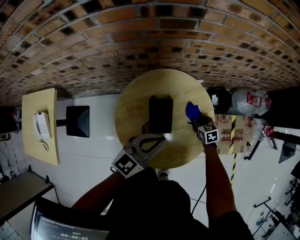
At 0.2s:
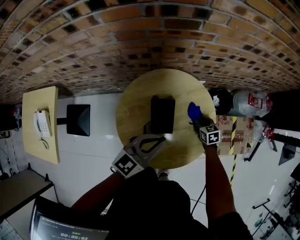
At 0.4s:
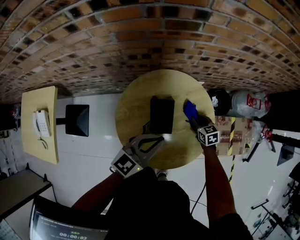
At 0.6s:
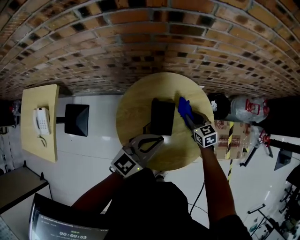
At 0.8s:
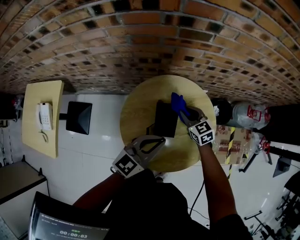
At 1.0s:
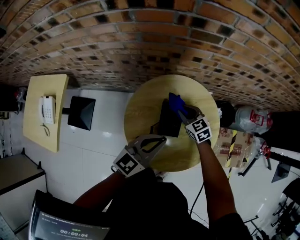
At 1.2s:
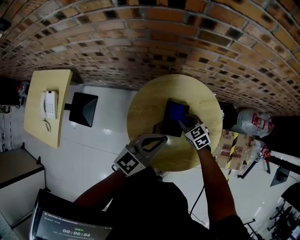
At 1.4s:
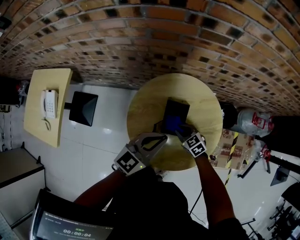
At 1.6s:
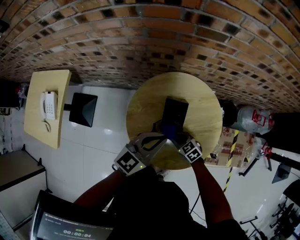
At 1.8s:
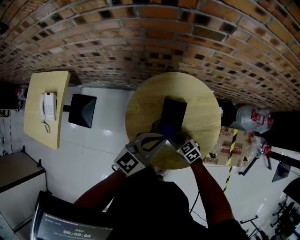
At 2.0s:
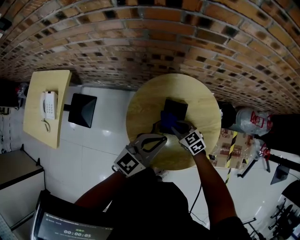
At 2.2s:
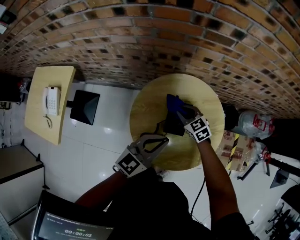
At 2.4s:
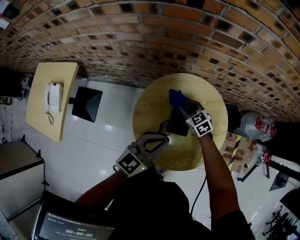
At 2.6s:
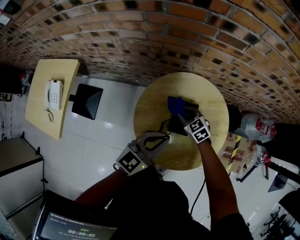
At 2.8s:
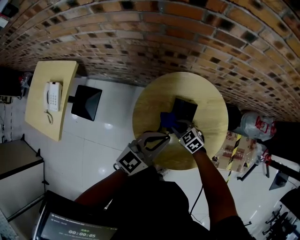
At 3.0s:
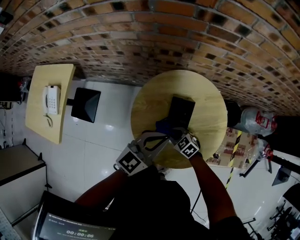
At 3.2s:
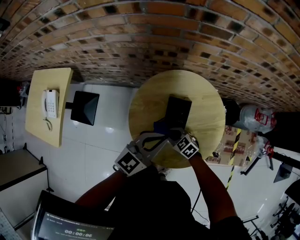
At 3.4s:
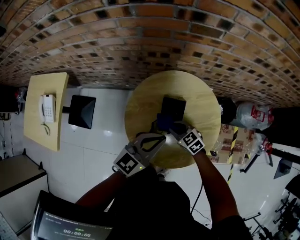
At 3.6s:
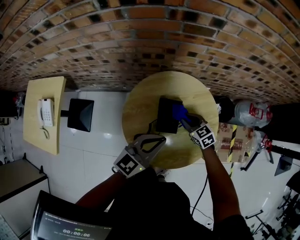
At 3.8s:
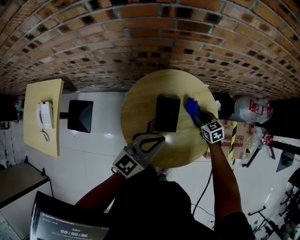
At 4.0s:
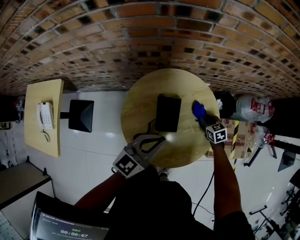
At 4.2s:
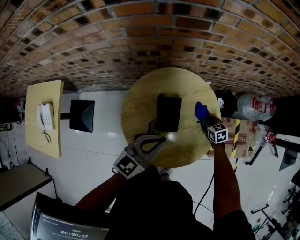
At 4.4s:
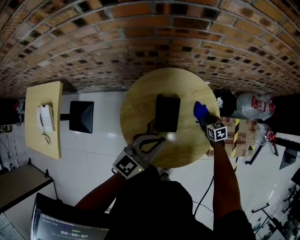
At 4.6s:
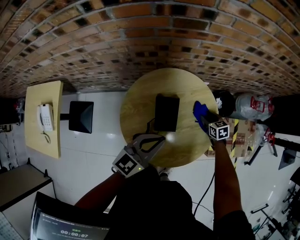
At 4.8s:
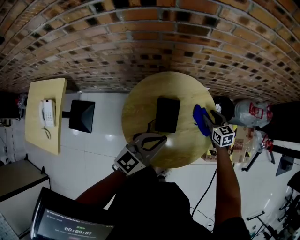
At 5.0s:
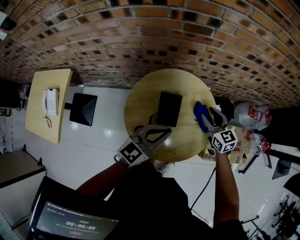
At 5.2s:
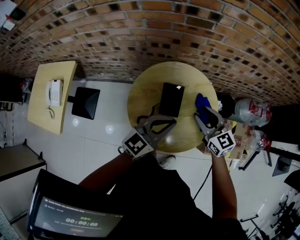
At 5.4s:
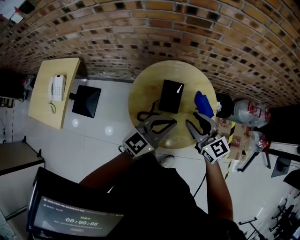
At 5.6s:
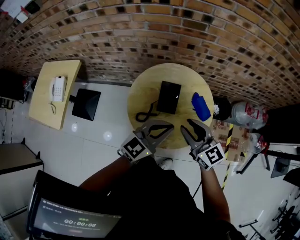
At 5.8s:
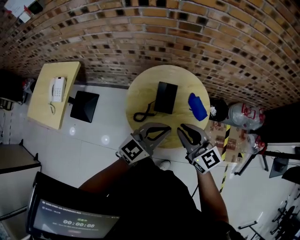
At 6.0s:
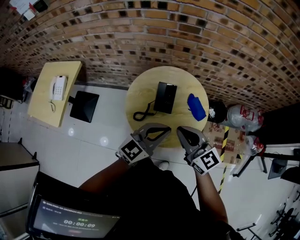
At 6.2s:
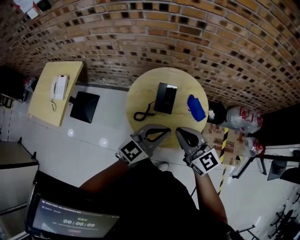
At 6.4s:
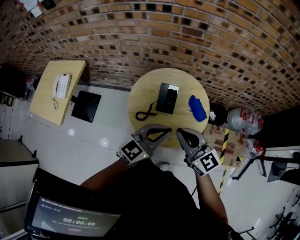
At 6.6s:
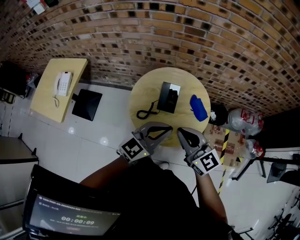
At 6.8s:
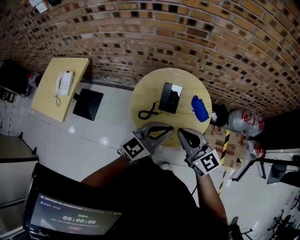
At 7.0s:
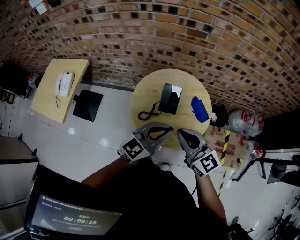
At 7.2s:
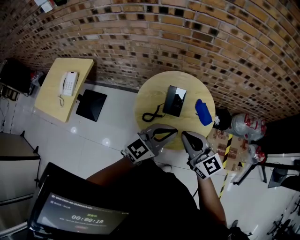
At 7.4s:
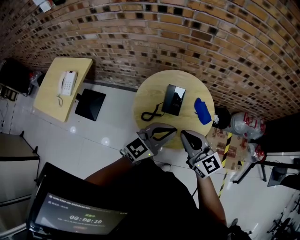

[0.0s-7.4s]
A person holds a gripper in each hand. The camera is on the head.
0.0s to 1.4s: The right gripper goes some 20 cm to the left, and turns by some 30 degrees, while the left gripper heads to the left, covering roughly 5 cm.
1.4s to 3.0s: The right gripper goes forward and backward, approximately 15 cm each way, reversing 2 times.
3.0s to 4.4s: The right gripper is displaced to the right by some 25 cm, and swivels some 40 degrees.
4.4s to 6.0s: The right gripper heads upward and backward, covering roughly 40 cm, tips its fingers upward by roughly 50 degrees, and closes up; the left gripper goes roughly 20 cm backward, upward and to the right.
6.0s to 7.4s: The grippers stay close to where they were, moving slightly.

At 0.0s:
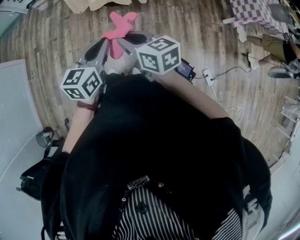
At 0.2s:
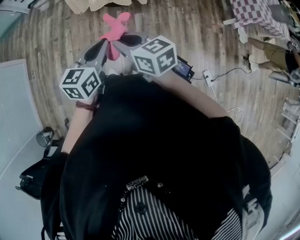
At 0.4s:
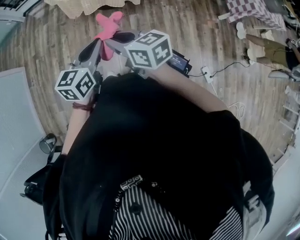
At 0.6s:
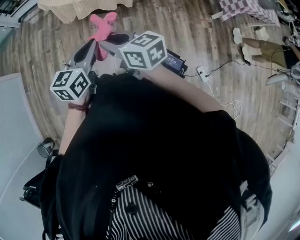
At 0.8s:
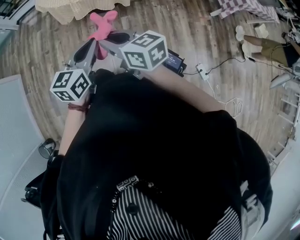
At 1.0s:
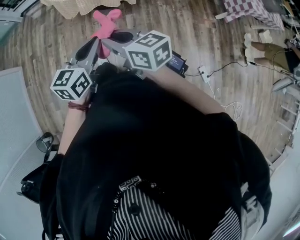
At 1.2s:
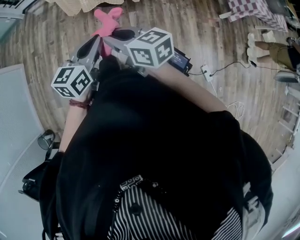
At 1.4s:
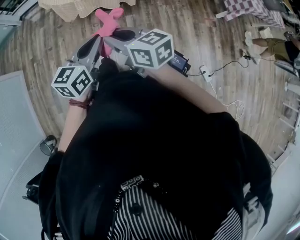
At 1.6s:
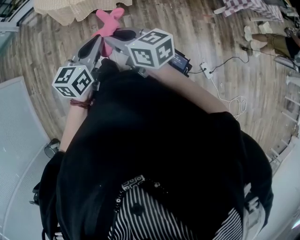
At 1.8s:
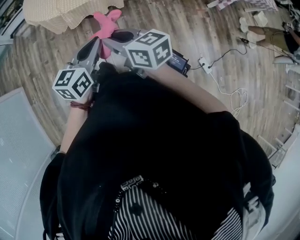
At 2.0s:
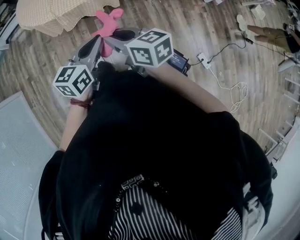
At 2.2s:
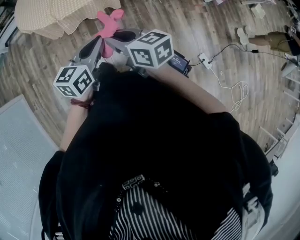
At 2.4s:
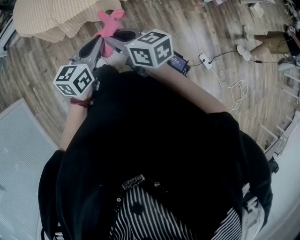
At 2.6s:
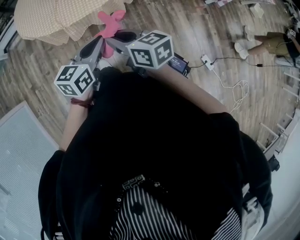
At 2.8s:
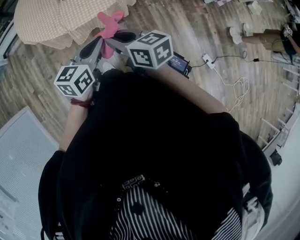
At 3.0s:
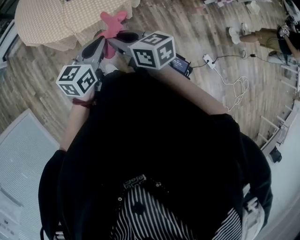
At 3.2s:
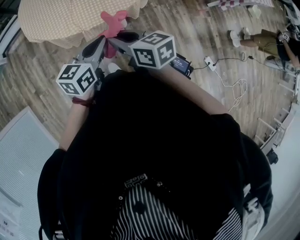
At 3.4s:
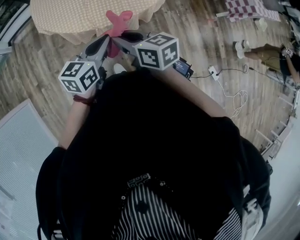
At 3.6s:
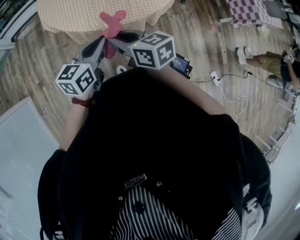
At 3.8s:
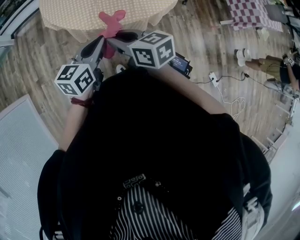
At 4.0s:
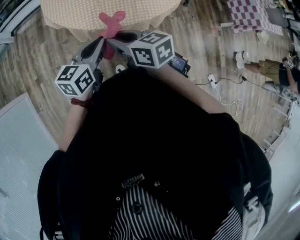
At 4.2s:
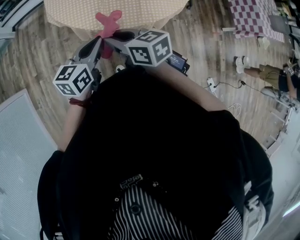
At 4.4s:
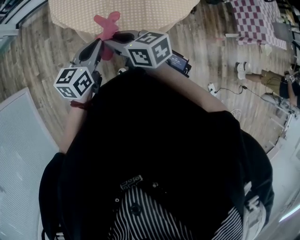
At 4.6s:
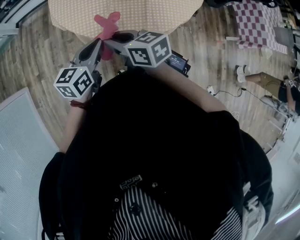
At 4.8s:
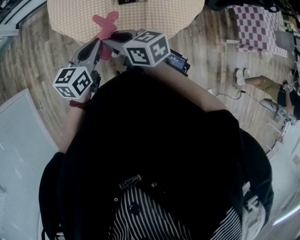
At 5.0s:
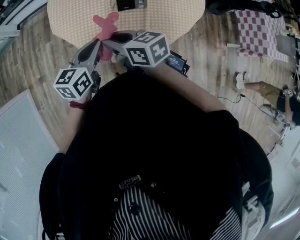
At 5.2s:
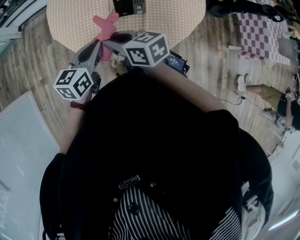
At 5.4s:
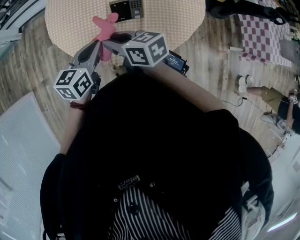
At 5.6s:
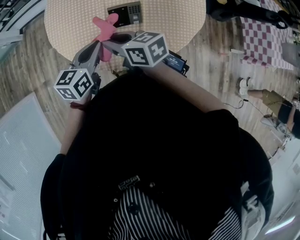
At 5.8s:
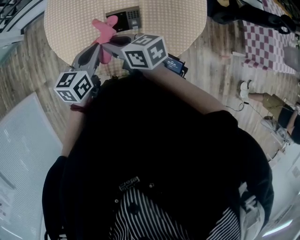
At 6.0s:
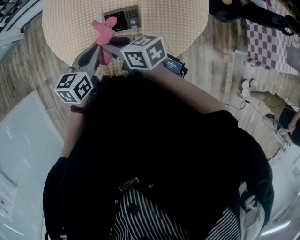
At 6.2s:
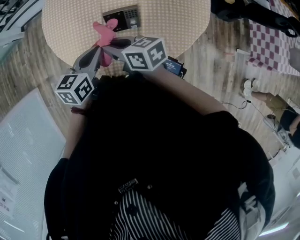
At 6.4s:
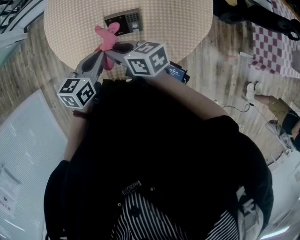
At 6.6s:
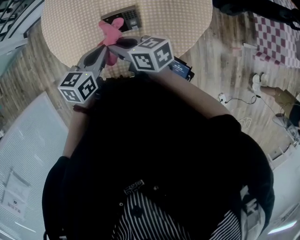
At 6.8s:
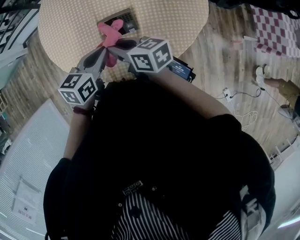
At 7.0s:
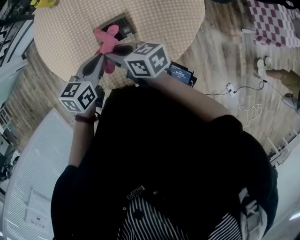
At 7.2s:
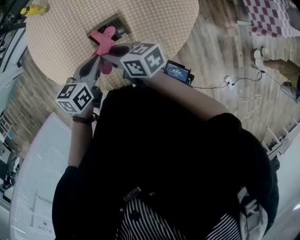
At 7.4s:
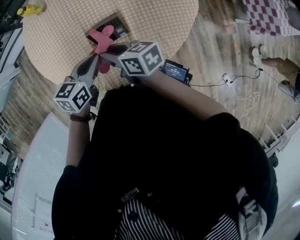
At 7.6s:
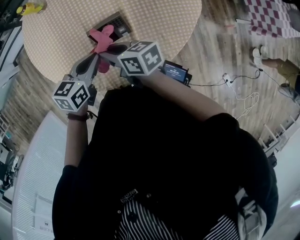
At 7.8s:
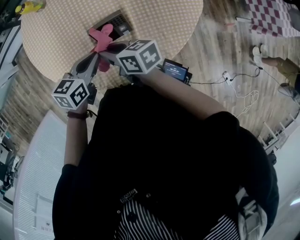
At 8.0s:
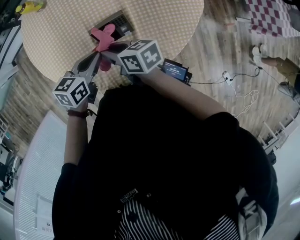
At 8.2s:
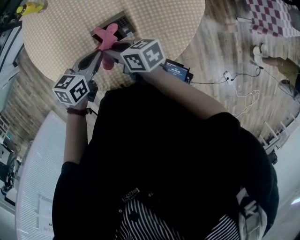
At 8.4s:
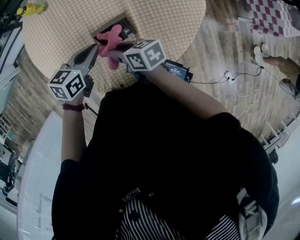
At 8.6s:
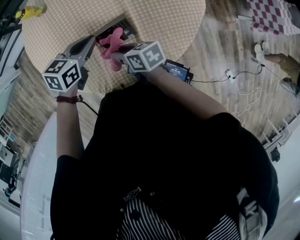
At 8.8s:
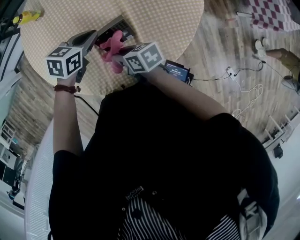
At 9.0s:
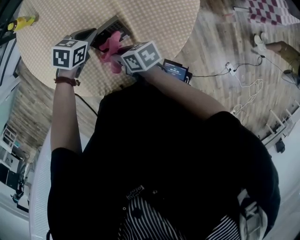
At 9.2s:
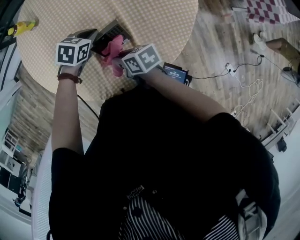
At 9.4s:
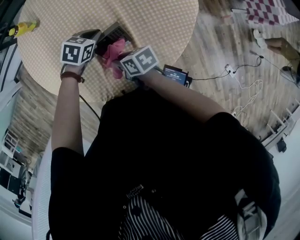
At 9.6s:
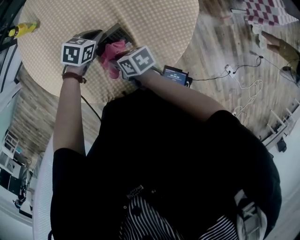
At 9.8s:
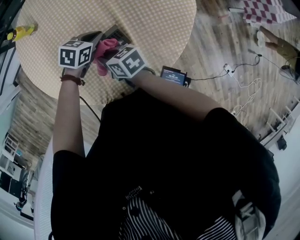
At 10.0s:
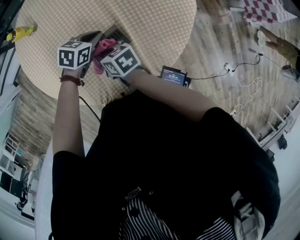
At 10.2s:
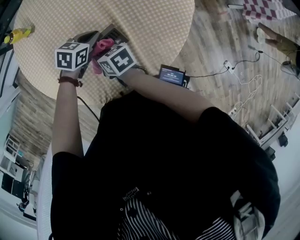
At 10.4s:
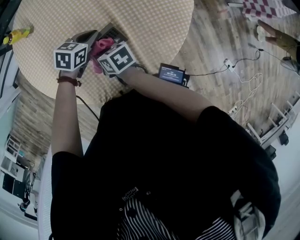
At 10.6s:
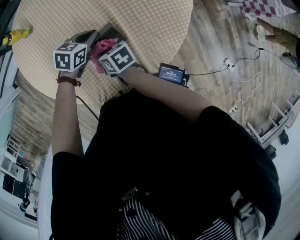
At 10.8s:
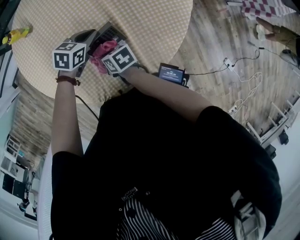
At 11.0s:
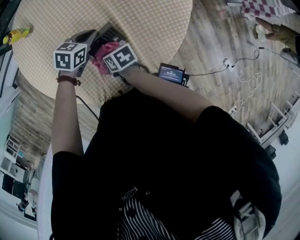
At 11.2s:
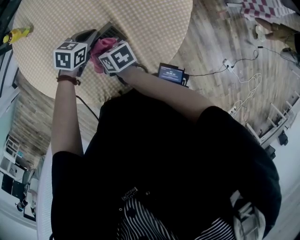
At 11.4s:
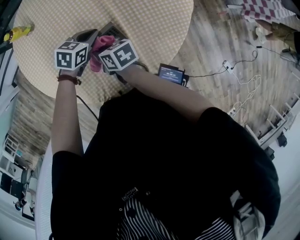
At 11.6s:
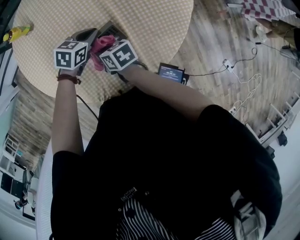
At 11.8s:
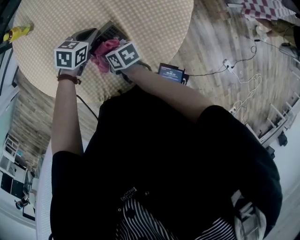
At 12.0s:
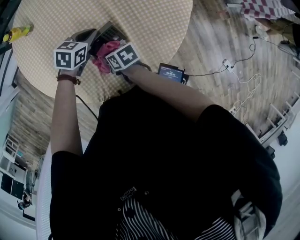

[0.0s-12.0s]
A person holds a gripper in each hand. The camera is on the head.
0.0s to 1.6s: The two grippers go approximately 5 cm to the right.
1.6s to 3.0s: Both grippers travel together forward and to the left, about 30 cm.
3.0s to 4.4s: The grippers both shift to the left and forward by roughly 25 cm.
4.4s to 6.0s: The two grippers go roughly 30 cm forward and to the right.
6.0s to 7.6s: The two grippers go some 15 cm to the right, downward and forward. The left gripper swivels roughly 20 degrees.
7.6s to 9.0s: The left gripper ends up some 15 cm from where it was, and swivels roughly 30 degrees, while the right gripper moves downward, approximately 10 cm.
9.0s to 10.4s: The right gripper changes place by roughly 5 cm.
10.4s to 12.0s: The right gripper moves up and down over approximately 5 cm, changing direction 2 times.

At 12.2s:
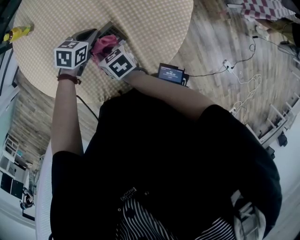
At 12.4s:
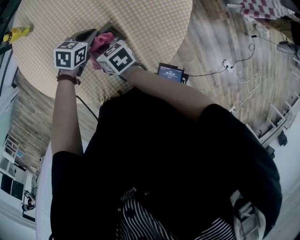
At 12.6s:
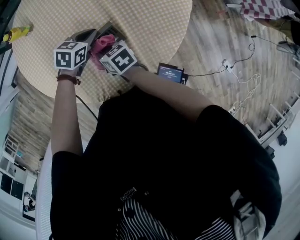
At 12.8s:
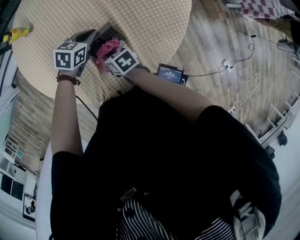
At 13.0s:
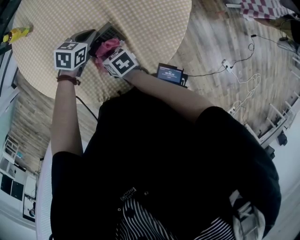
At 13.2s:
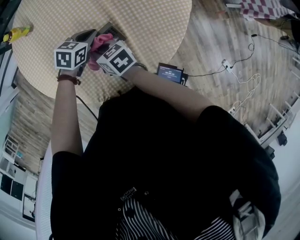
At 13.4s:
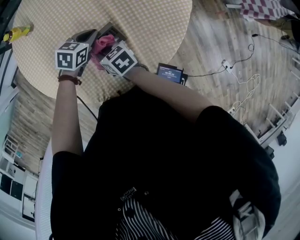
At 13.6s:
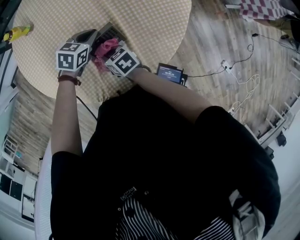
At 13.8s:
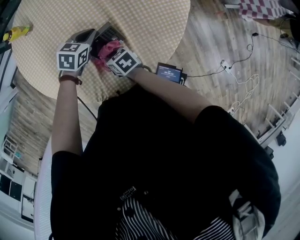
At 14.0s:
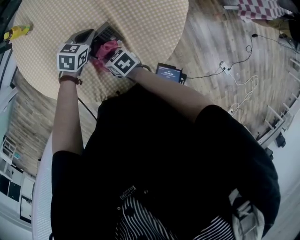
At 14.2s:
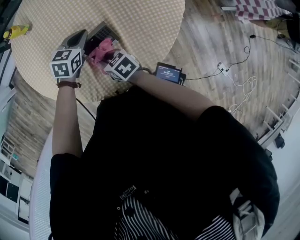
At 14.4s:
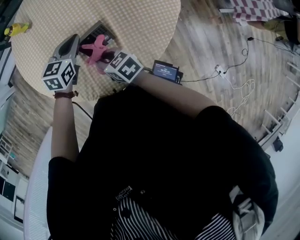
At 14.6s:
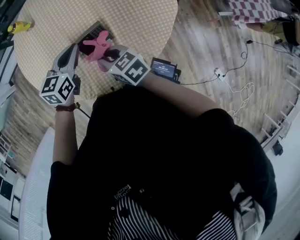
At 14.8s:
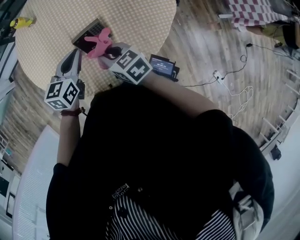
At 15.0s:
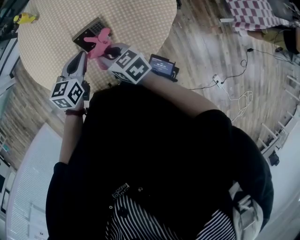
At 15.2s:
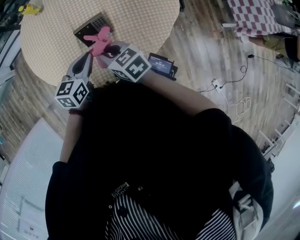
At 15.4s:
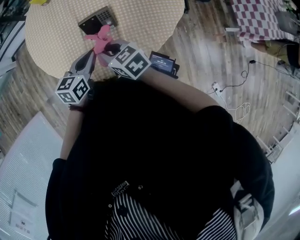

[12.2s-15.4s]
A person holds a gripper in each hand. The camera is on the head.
12.2s to 13.8s: The right gripper swings up and down, some 5 cm each way, with 2 reversals.
13.8s to 15.4s: The right gripper is displaced upward and backward by approximately 15 cm, and rotates some 30 degrees. Meanwhile the left gripper shifts approximately 20 cm backward and upward, and rotates some 40 degrees.

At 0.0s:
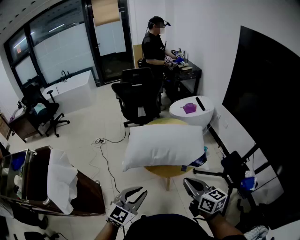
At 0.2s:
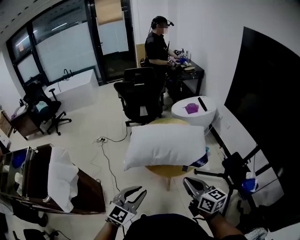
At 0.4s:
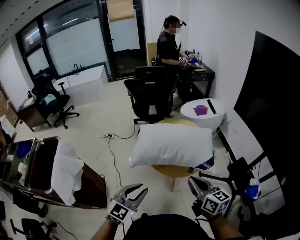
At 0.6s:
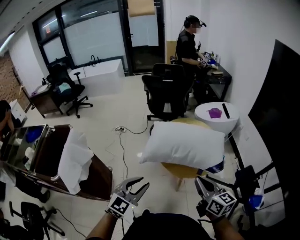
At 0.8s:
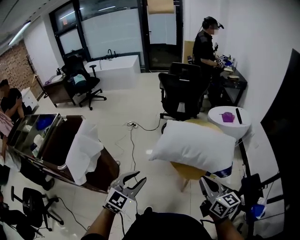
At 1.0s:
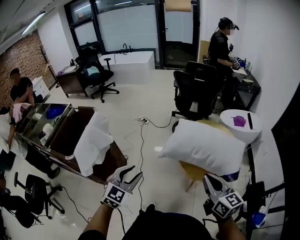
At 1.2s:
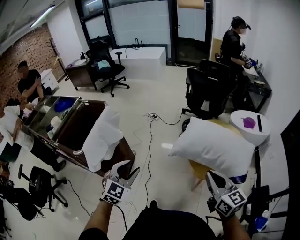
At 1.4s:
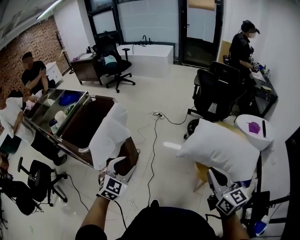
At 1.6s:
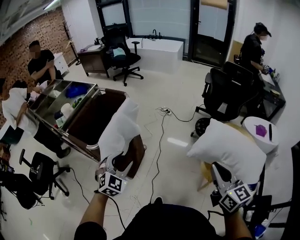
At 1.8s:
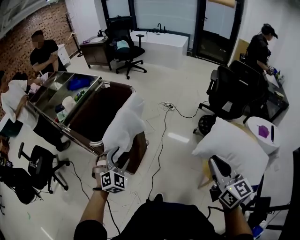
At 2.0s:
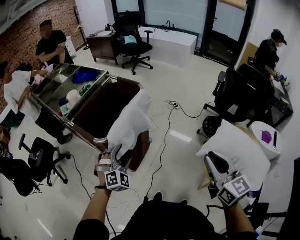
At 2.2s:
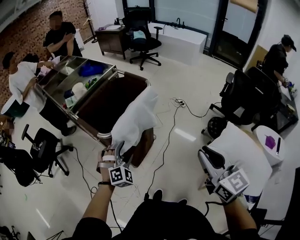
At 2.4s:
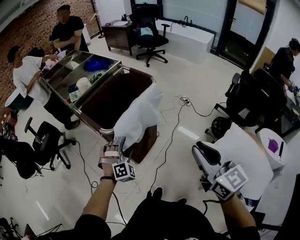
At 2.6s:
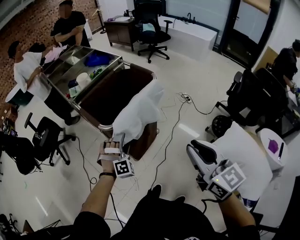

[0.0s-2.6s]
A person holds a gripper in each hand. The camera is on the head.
0.0s to 1.2s: The left gripper changes place by approximately 20 cm, and turns by roughly 40 degrees. Meanwhile the right gripper ends up some 15 cm from where it was, and changes its angle by some 30 degrees.
1.2s to 2.6s: The right gripper ends up approximately 35 cm from where it was, and changes its angle by roughly 30 degrees, while the left gripper ends up some 30 cm from where it was, turns by approximately 60 degrees, and opens its fingers.
